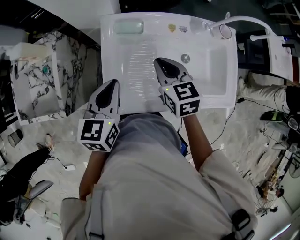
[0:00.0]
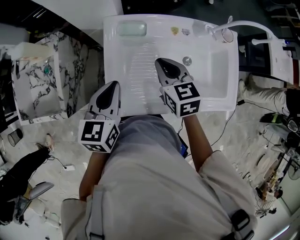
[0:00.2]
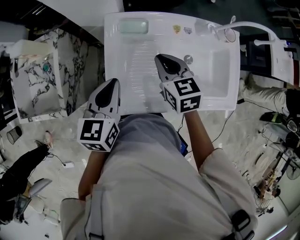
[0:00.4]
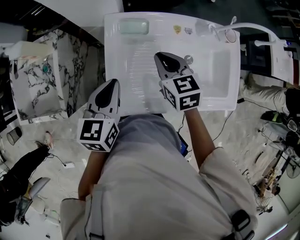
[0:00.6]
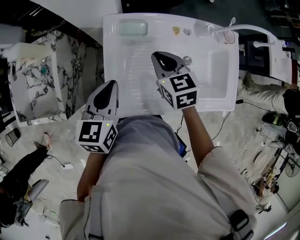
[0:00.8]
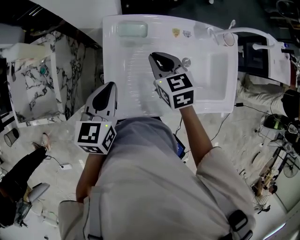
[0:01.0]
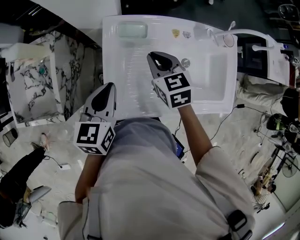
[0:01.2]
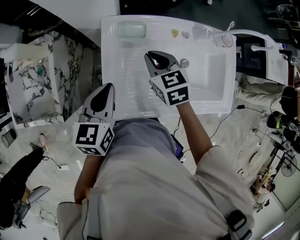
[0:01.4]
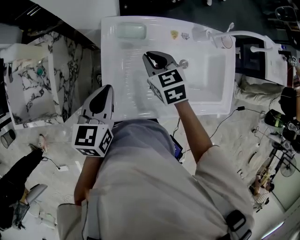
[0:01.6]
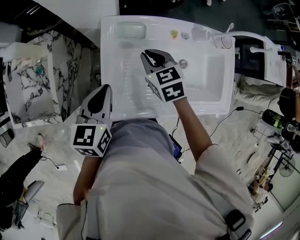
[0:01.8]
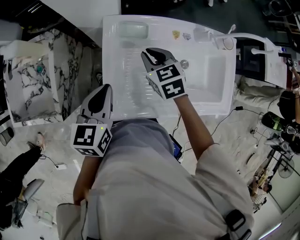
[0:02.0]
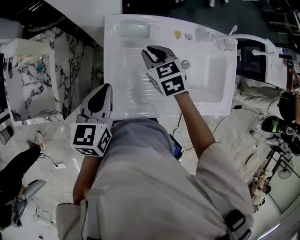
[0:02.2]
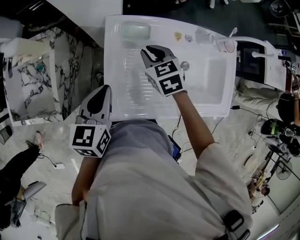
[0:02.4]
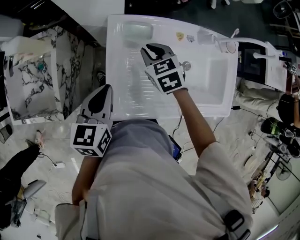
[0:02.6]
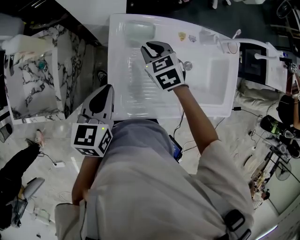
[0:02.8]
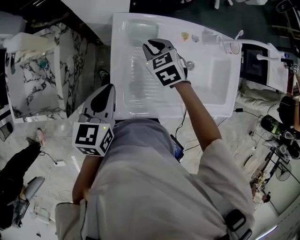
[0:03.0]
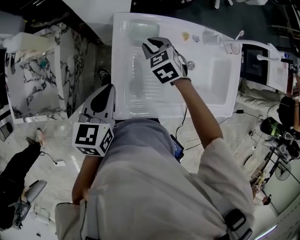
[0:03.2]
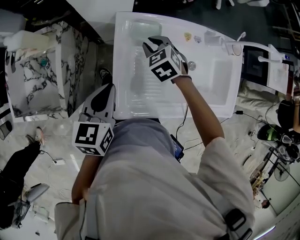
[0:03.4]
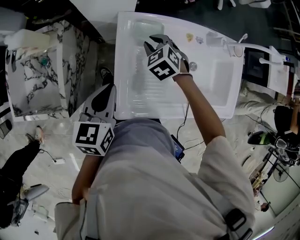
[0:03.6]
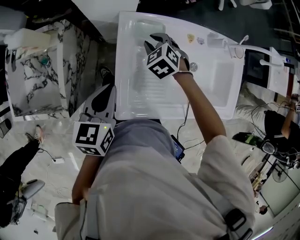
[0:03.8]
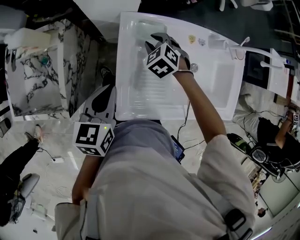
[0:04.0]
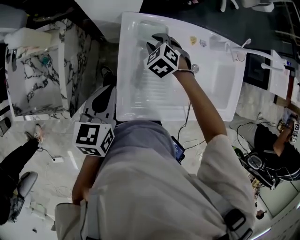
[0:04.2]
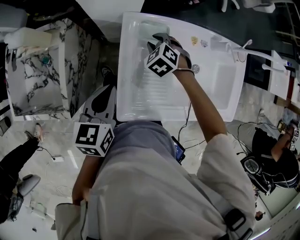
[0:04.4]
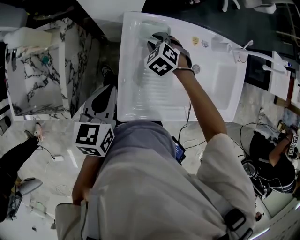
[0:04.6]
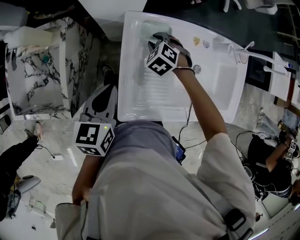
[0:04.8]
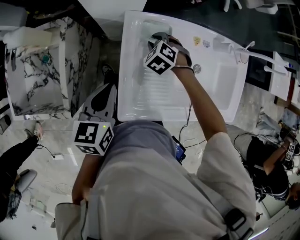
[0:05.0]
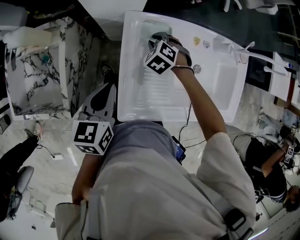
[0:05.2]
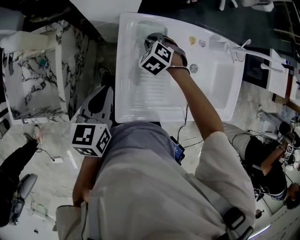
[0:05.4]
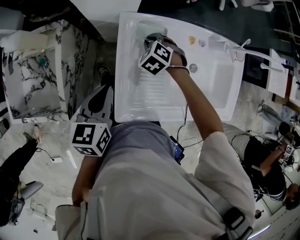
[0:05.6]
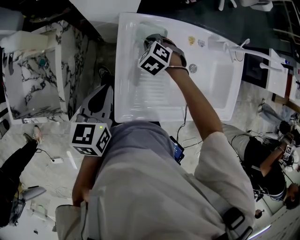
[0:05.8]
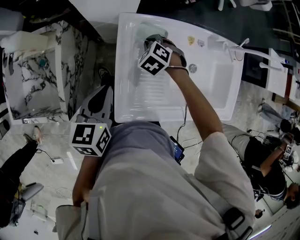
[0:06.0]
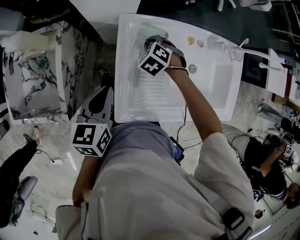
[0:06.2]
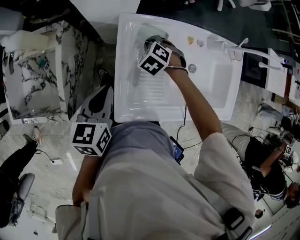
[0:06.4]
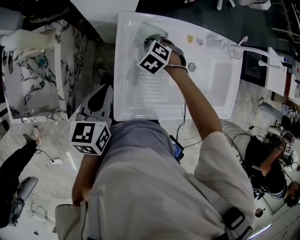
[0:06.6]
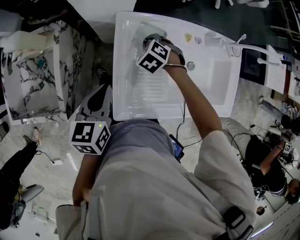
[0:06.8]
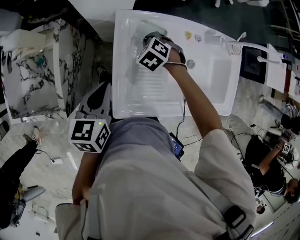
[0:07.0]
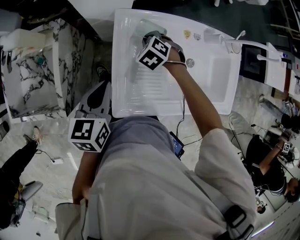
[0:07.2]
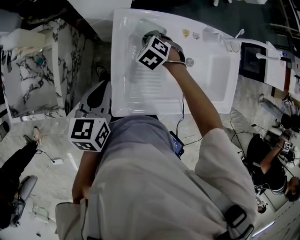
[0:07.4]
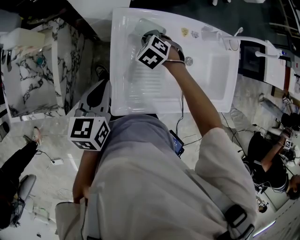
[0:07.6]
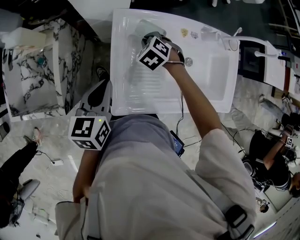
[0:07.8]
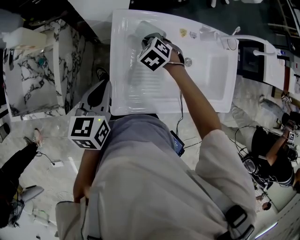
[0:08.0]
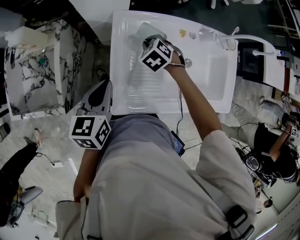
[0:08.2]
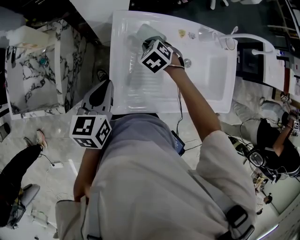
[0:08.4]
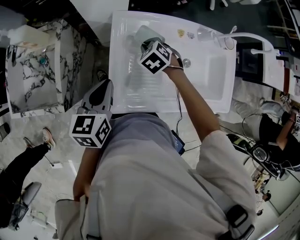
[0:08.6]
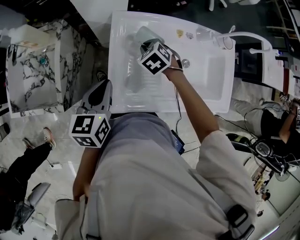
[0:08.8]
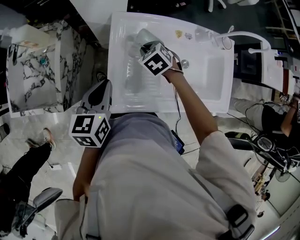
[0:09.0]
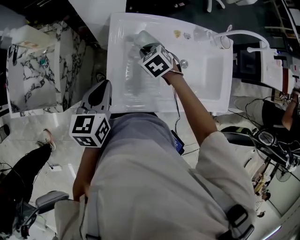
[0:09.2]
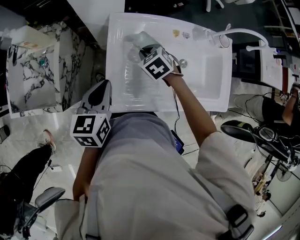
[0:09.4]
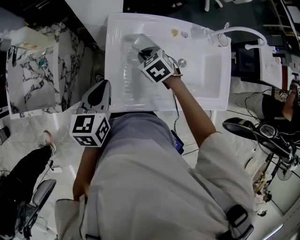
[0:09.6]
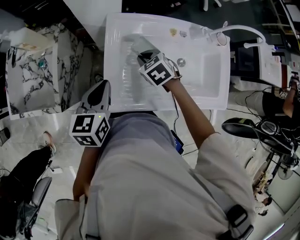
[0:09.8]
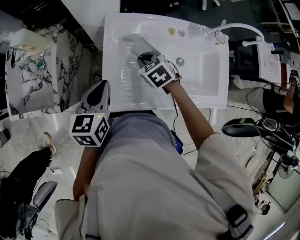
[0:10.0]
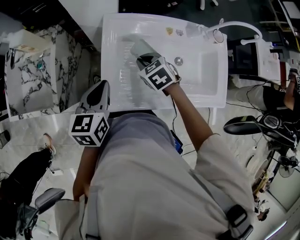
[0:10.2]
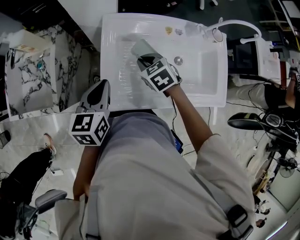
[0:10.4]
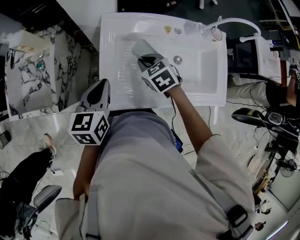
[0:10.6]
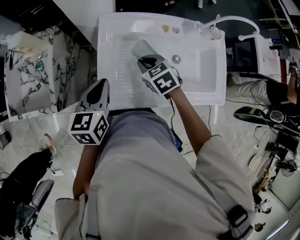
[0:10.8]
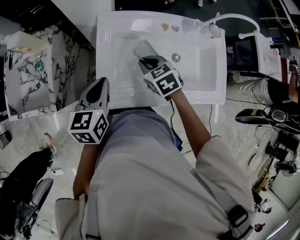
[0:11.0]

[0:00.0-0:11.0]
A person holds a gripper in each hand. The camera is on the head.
0:00.0 to 0:01.6: The right gripper shifts approximately 5 cm forward.
0:01.6 to 0:03.2: The right gripper travels forward by about 5 cm, and turns by some 20 degrees.
0:03.2 to 0:04.8: The right gripper travels downward by approximately 5 cm, and swivels some 20 degrees.
0:04.8 to 0:06.2: Both grippers stay about where they are.
0:06.2 to 0:07.8: The grippers stay close to where they were, moving slightly.
0:07.8 to 0:09.4: The right gripper travels backward by roughly 5 cm.
0:09.4 to 0:11.0: The right gripper goes approximately 10 cm backward.

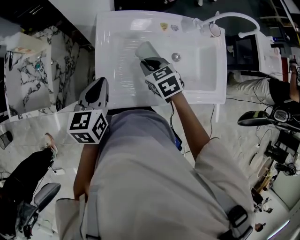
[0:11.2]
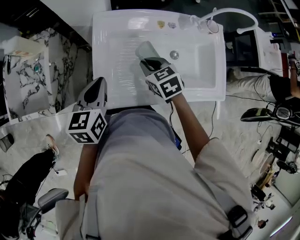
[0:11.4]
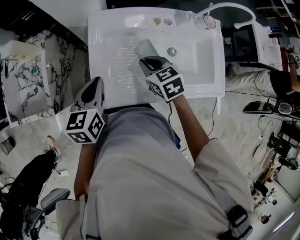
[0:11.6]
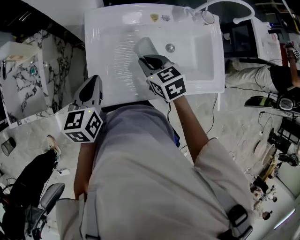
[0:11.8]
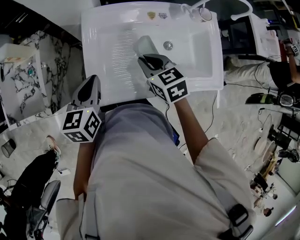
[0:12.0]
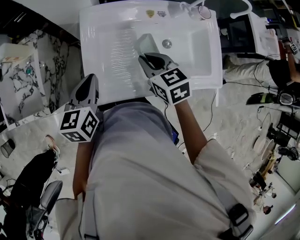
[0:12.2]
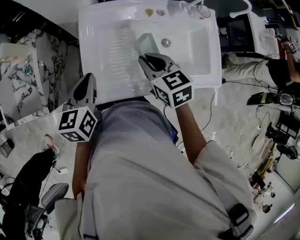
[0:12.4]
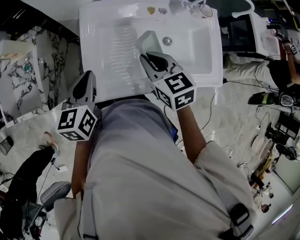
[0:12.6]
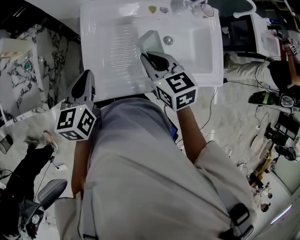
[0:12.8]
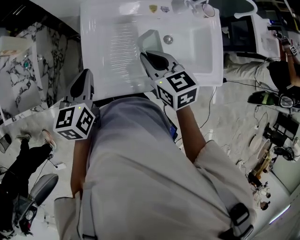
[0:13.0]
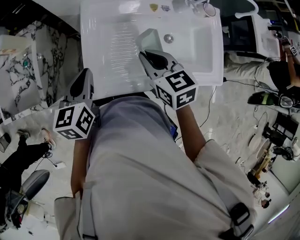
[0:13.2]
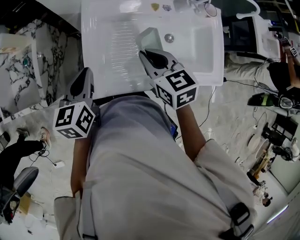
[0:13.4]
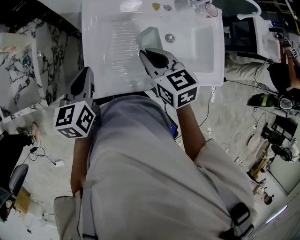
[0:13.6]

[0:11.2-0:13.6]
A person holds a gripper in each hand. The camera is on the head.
0:11.2 to 0:12.4: The right gripper is displaced upward by about 5 cm.
0:12.4 to 0:13.6: The grippers move only a little.

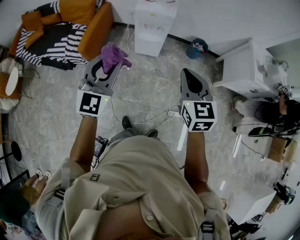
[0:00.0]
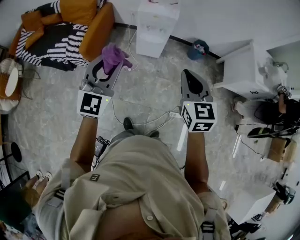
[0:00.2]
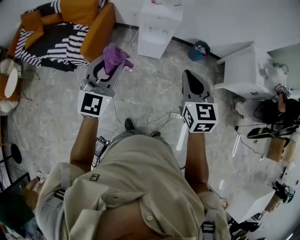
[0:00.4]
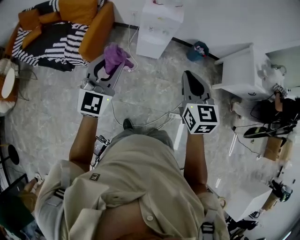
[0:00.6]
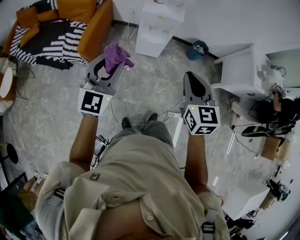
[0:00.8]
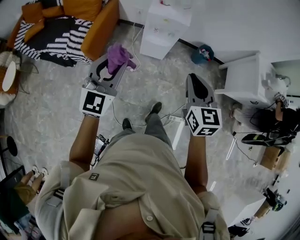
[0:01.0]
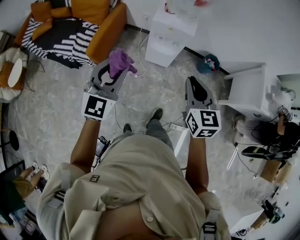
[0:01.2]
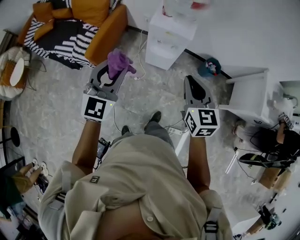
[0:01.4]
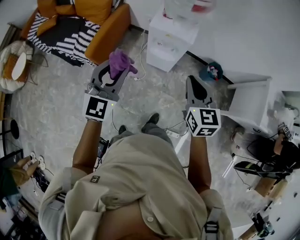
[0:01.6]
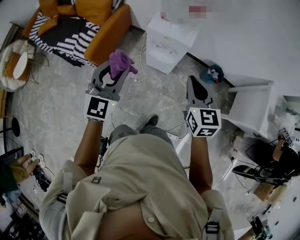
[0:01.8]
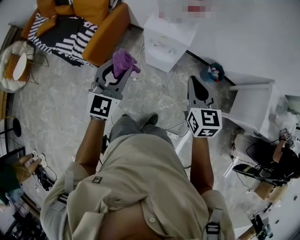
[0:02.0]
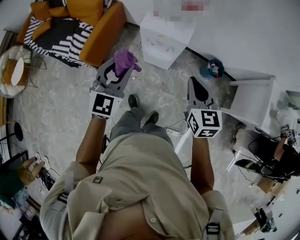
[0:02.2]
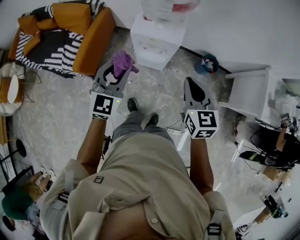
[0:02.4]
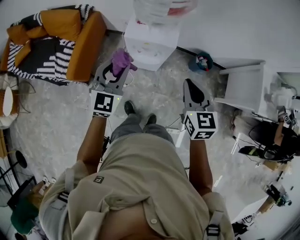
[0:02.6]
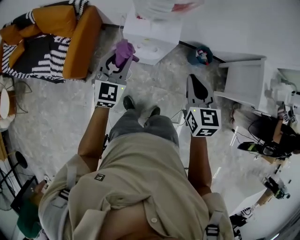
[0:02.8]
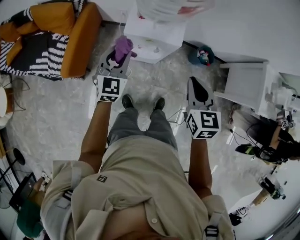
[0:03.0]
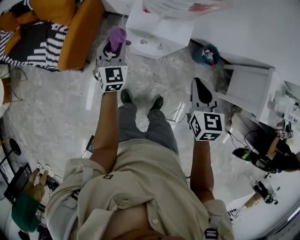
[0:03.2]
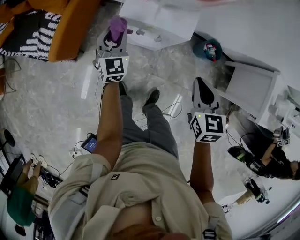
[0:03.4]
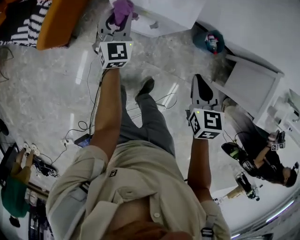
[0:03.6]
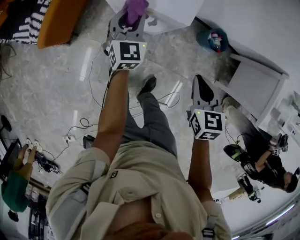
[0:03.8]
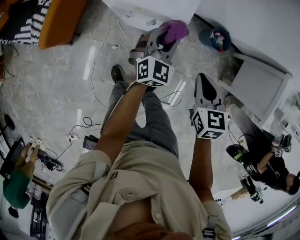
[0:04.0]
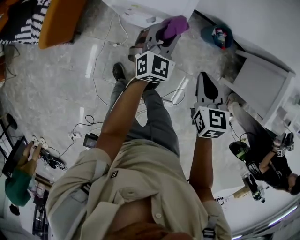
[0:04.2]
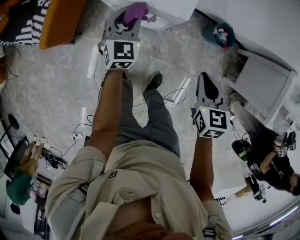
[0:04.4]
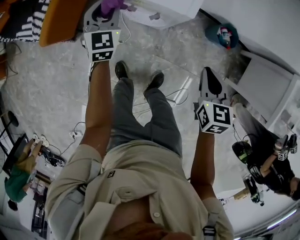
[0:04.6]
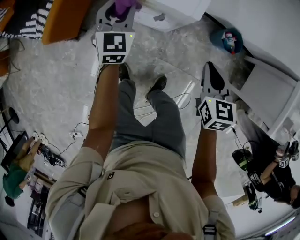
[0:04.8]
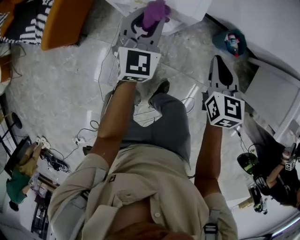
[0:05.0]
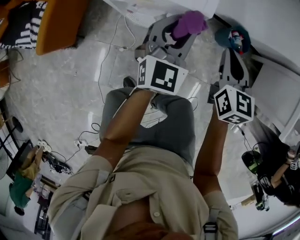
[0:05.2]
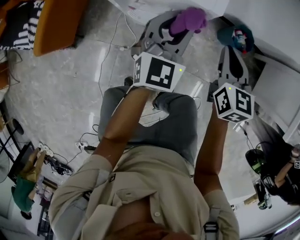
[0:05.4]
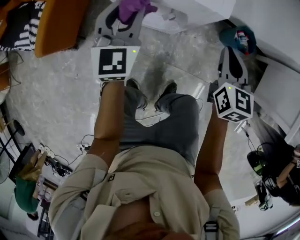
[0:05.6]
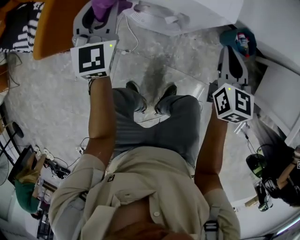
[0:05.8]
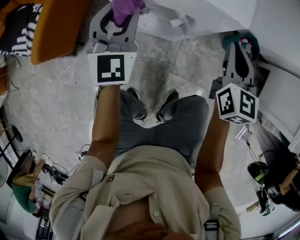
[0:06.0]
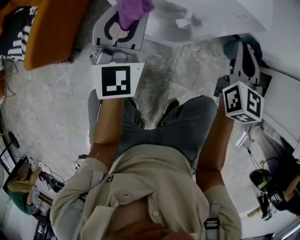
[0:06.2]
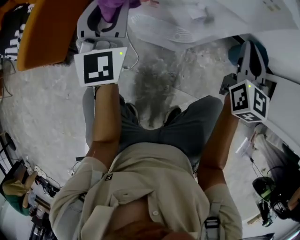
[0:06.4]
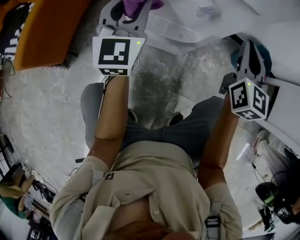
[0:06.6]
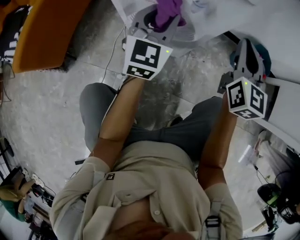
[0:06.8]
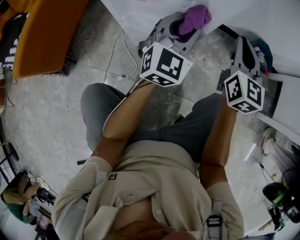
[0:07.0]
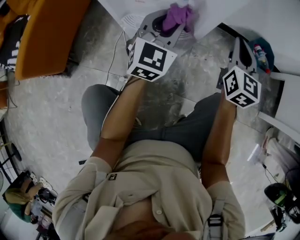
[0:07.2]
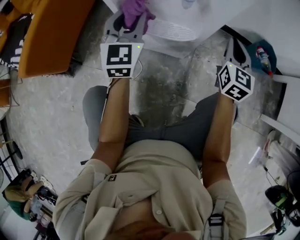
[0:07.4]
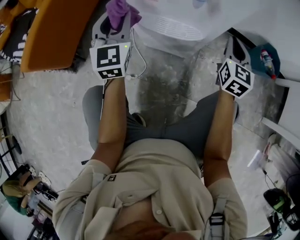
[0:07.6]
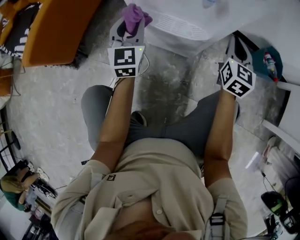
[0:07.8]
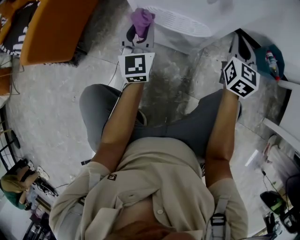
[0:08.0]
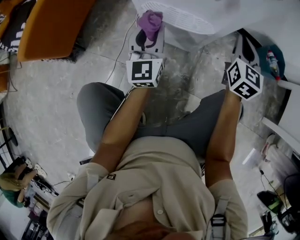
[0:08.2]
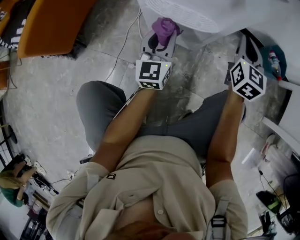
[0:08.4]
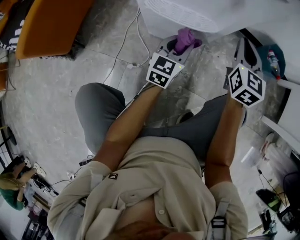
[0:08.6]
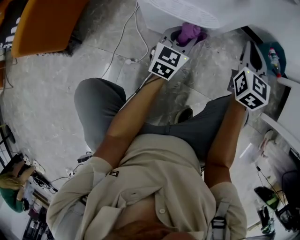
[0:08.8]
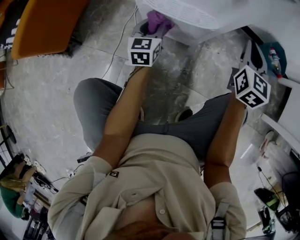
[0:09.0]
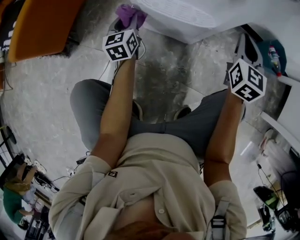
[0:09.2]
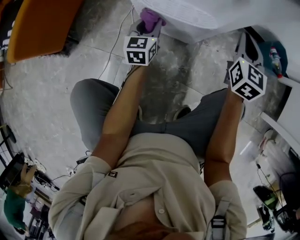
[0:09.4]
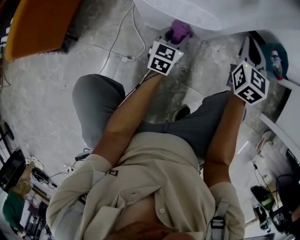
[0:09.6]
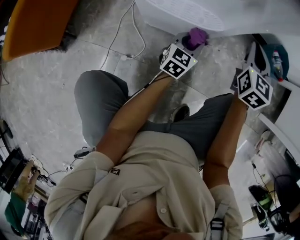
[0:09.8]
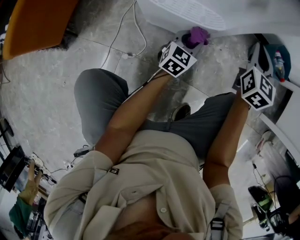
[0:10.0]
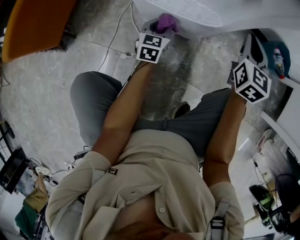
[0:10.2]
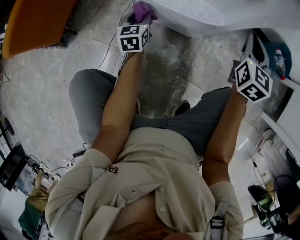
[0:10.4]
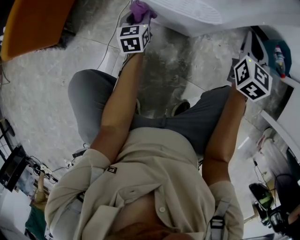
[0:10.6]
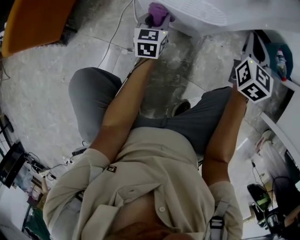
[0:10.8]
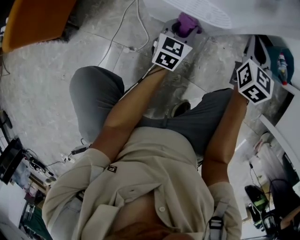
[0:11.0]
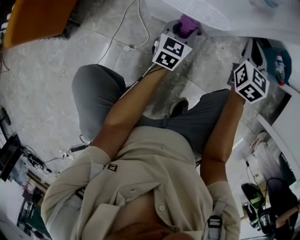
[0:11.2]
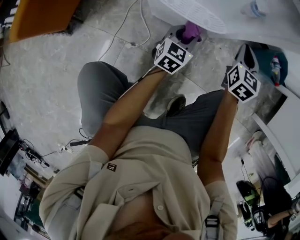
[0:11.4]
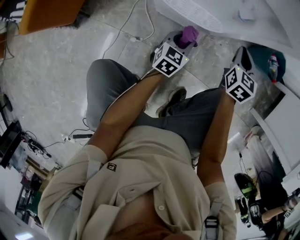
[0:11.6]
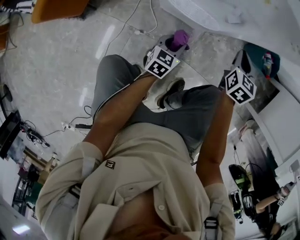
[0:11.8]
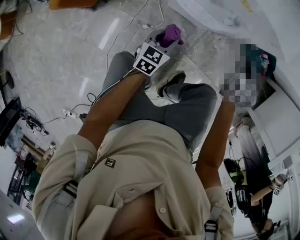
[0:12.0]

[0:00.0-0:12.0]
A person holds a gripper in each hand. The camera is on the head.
0:00.0 to 0:01.6: The two grippers go about 20 cm forward.
0:01.6 to 0:03.0: The right gripper is displaced forward and downward by about 15 cm, while the left gripper goes roughly 30 cm forward and downward.
0:03.0 to 0:04.4: The two grippers go about 25 cm downward and to the right.
0:04.4 to 0:06.0: The right gripper travels forward and downward by approximately 20 cm, and swivels some 30 degrees. Meanwhile the left gripper swings left and right, about 25 cm each way, with 3 reversals.
0:06.0 to 0:07.6: The left gripper swings left and right, approximately 25 cm each way, with 2 reversals, while the right gripper heads downward, covering roughly 25 cm.
0:07.6 to 0:09.0: The left gripper heads downward, covering some 20 cm, and changes its angle by some 30 degrees.
0:09.0 to 0:10.4: The right gripper ends up roughly 5 cm from where it was, while the left gripper moves left and right over roughly 25 cm, changing direction 2 times.
0:10.4 to 0:12.0: The left gripper goes roughly 30 cm upward and backward, and rotates about 20 degrees; the right gripper travels upward by approximately 20 cm.
